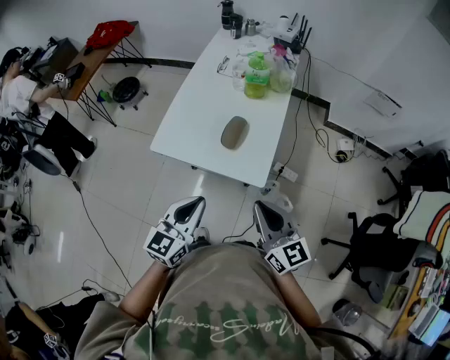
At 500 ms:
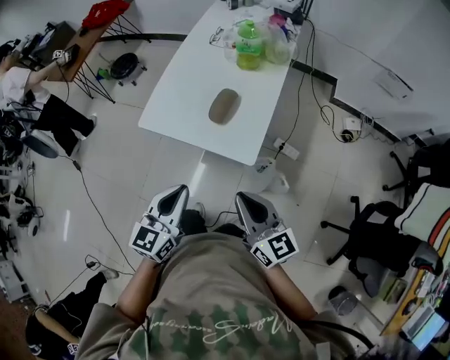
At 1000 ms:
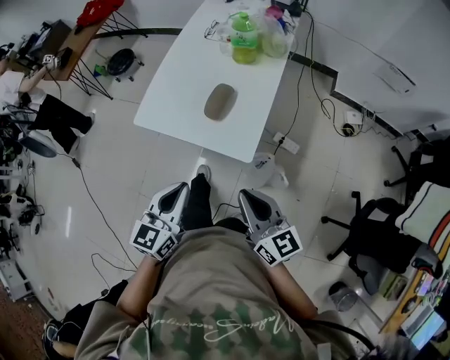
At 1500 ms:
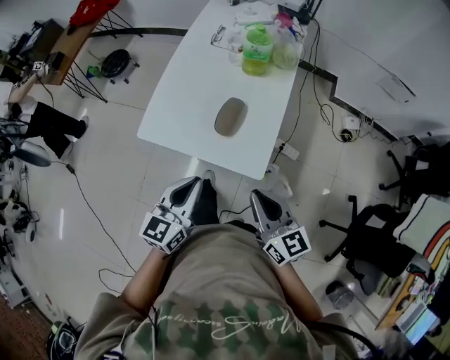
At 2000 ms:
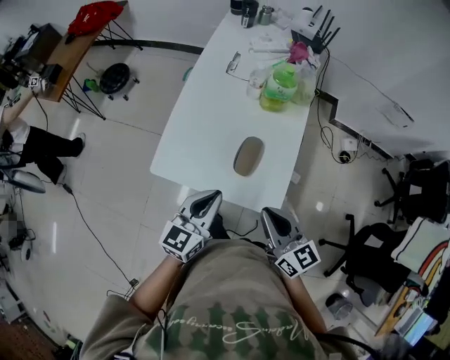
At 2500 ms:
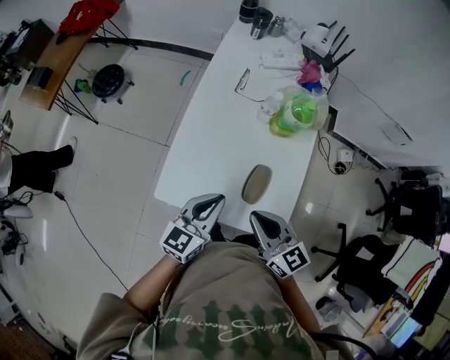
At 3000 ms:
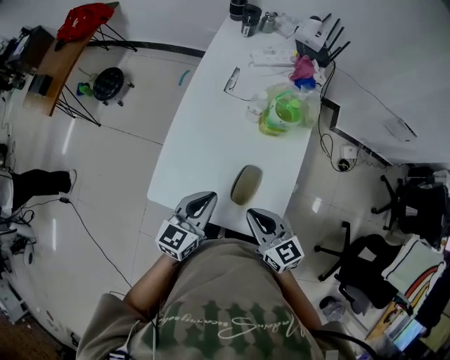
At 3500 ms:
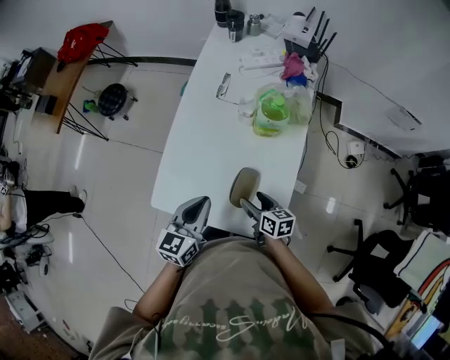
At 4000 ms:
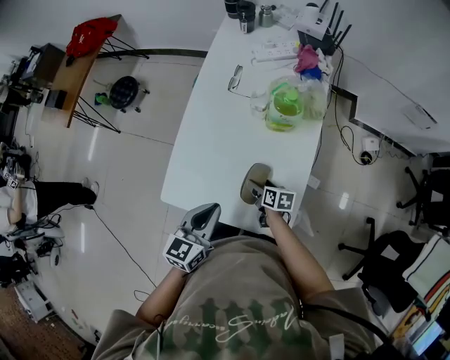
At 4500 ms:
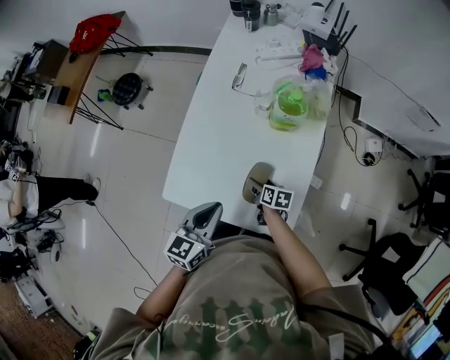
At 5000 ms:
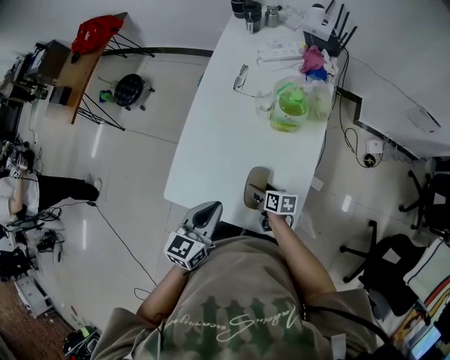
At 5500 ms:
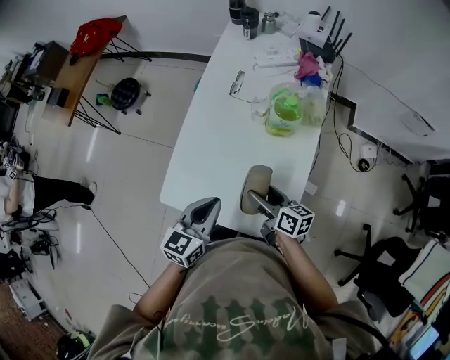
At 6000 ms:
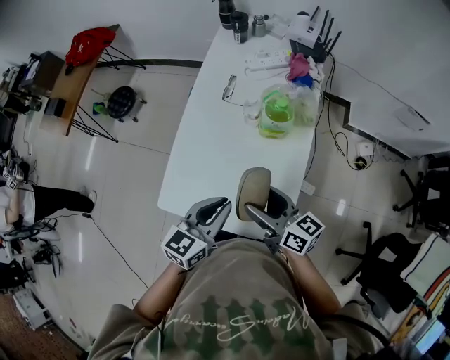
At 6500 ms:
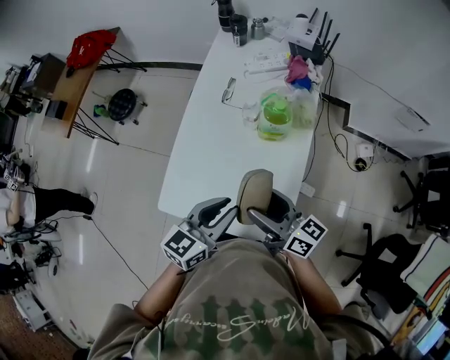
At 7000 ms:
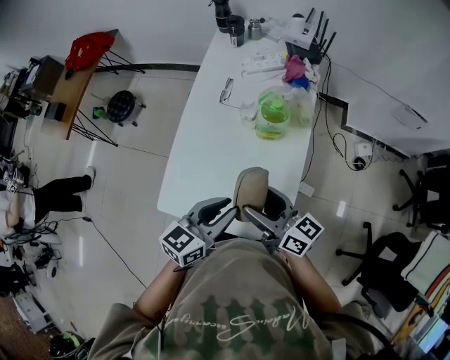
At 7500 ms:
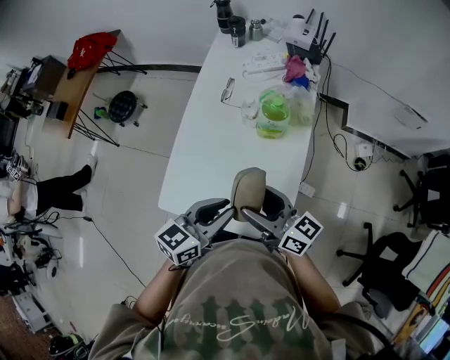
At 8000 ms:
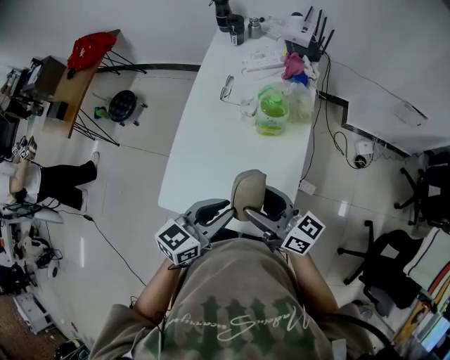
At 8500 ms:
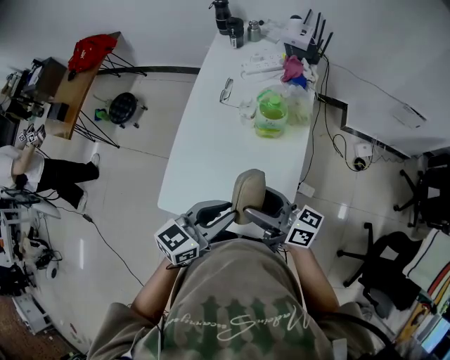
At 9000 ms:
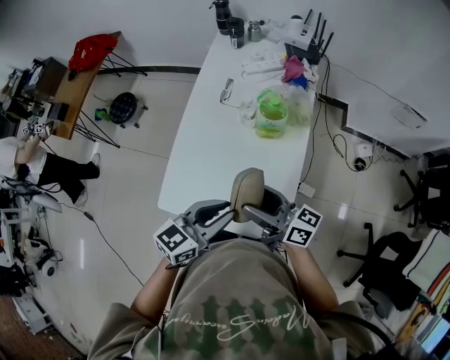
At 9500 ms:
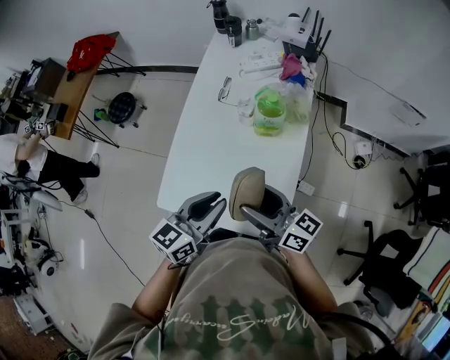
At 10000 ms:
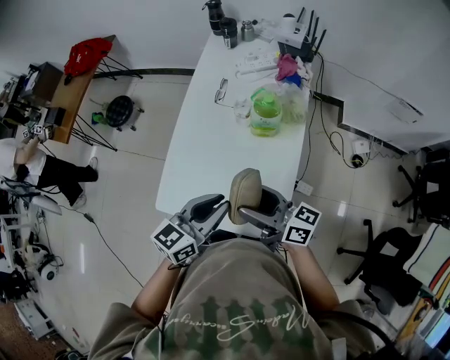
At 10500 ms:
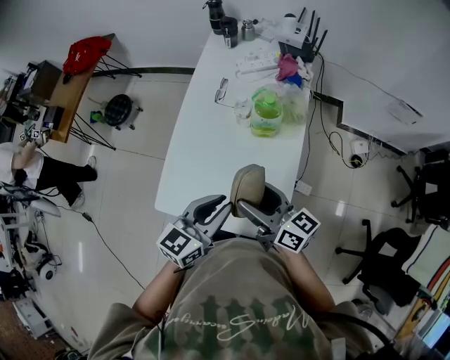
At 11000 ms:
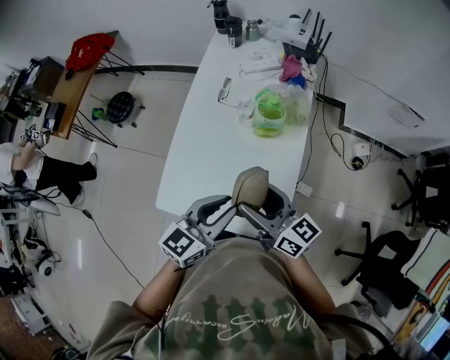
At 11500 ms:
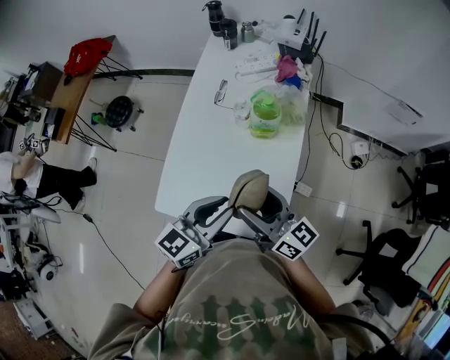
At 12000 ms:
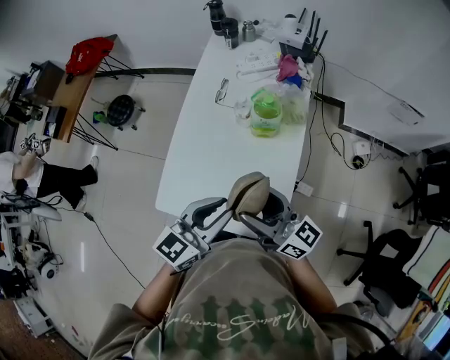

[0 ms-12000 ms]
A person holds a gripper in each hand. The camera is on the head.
0 ms to 2000 ms: The grippers both shift forward by roughly 20 cm.
2000 ms to 4000 ms: The left gripper moves forward, roughly 10 cm. The right gripper is displaced downward and forward by roughly 35 cm, points its fingers about 30 degrees further downward, and opens.
4000 ms to 6000 ms: The left gripper shifts roughly 5 cm to the right and upward, while the right gripper is displaced upward by about 25 cm, and angles its fingers upward, by approximately 40 degrees.
6000 ms to 10000 ms: The grippers move only a little.
10000 ms to 12000 ms: There are only small adjustments of the grippers.

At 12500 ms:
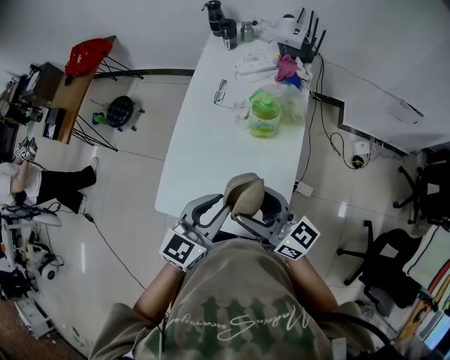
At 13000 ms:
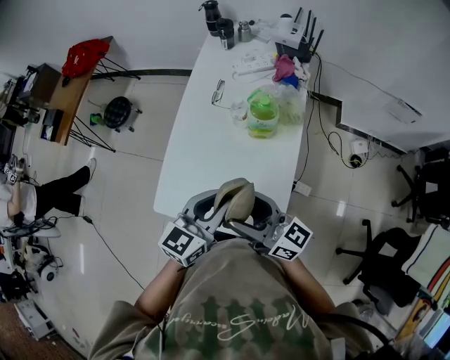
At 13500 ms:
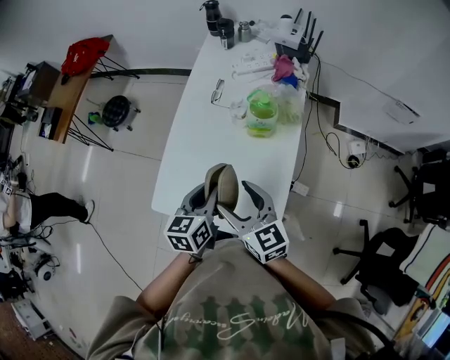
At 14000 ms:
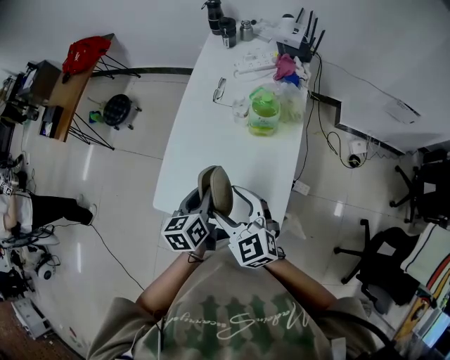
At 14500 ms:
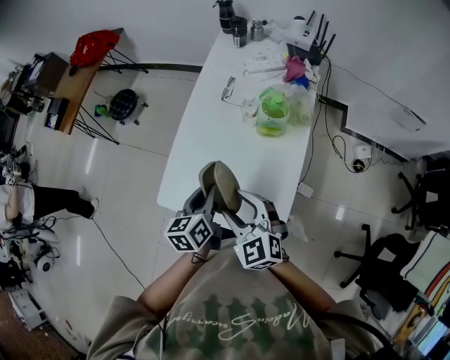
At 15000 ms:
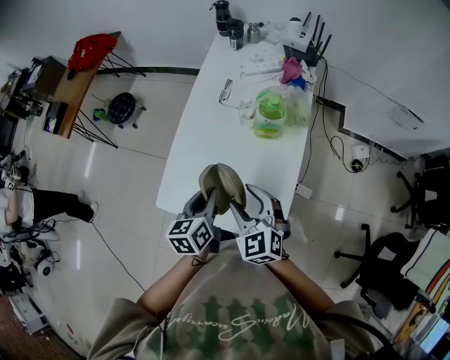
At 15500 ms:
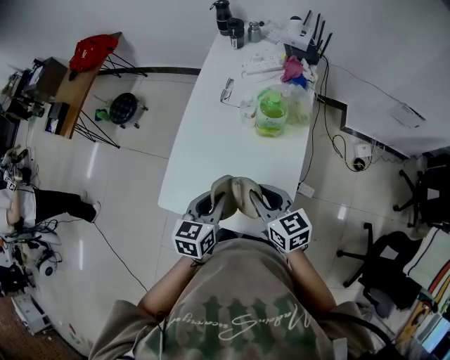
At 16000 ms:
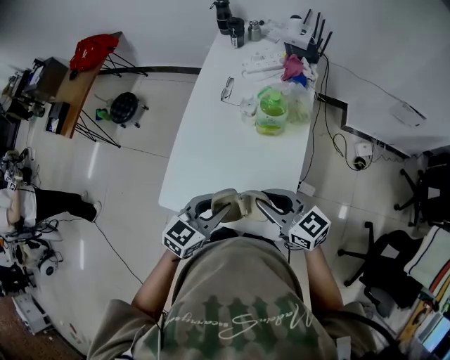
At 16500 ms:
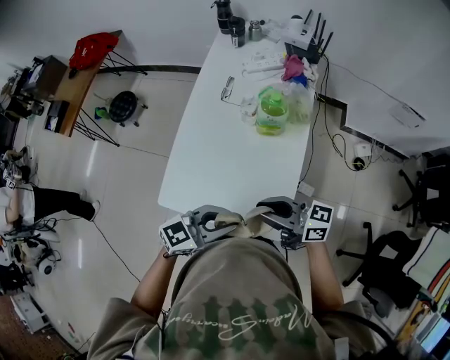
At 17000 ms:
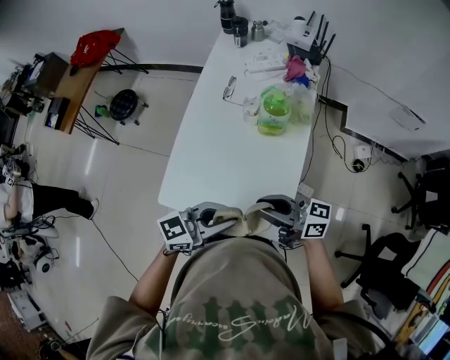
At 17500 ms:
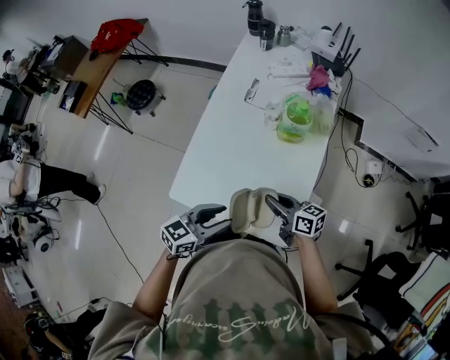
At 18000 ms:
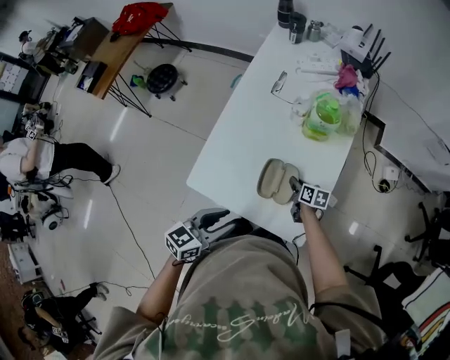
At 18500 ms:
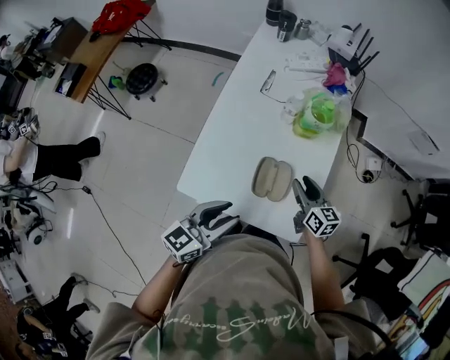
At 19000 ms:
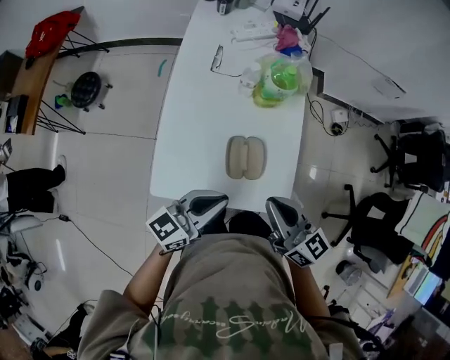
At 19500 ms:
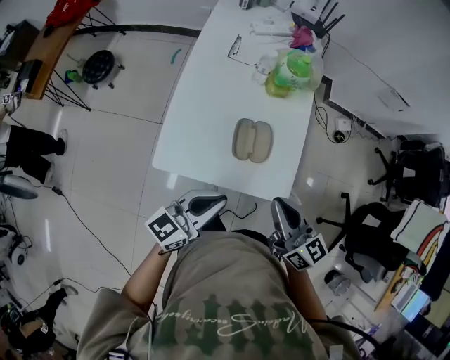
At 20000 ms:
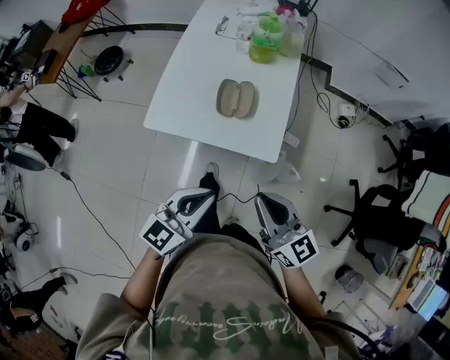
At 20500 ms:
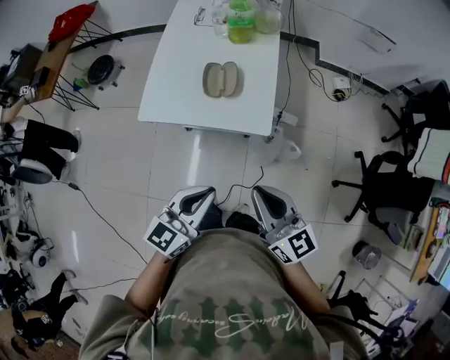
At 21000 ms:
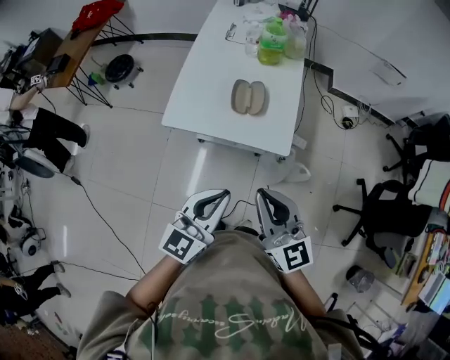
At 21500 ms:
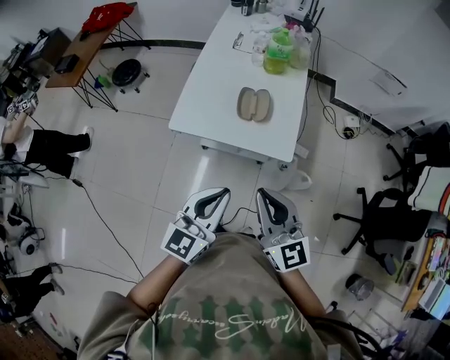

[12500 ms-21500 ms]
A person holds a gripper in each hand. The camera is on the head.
12500 ms to 14500 ms: The right gripper is displaced to the left and downward by approximately 10 cm, and tilts its fingers some 40 degrees downward. Meanwhile the left gripper goes approximately 10 cm downward and to the left, and swivels roughly 40 degrees.
14500 ms to 17000 ms: The right gripper changes place by approximately 10 cm, tilts its fingers roughly 40 degrees upward, and closes its fingers; the left gripper changes place by roughly 15 cm, and swivels some 60 degrees.
17000 ms to 19500 ms: The left gripper goes downward and returns, approximately 10 cm each way, and opens, then closes again. Meanwhile the right gripper reaches some 30 cm downward, then returns, and turns by about 50 degrees.
19500 ms to 21500 ms: Both grippers travel together backward, about 20 cm. The right gripper turns by approximately 20 degrees; the left gripper swivels roughly 30 degrees.

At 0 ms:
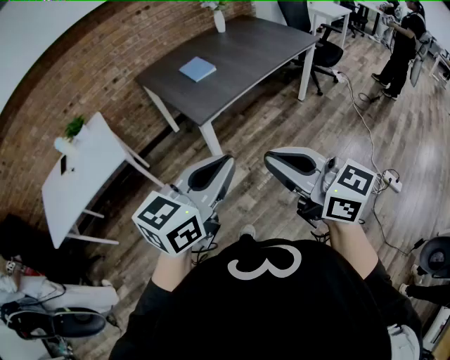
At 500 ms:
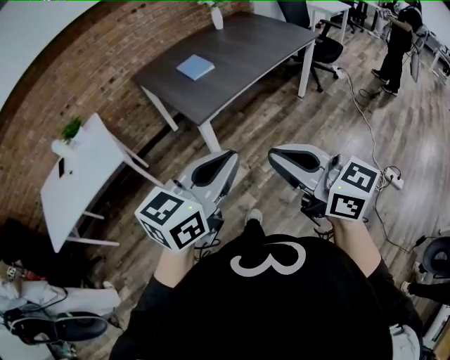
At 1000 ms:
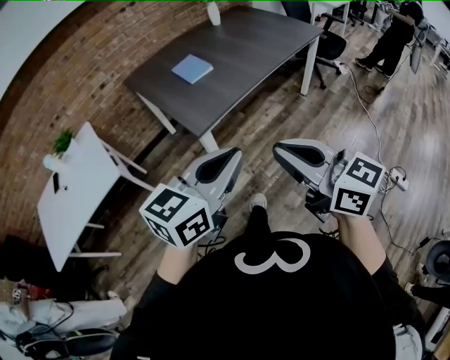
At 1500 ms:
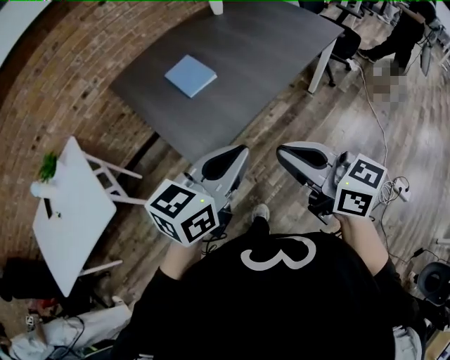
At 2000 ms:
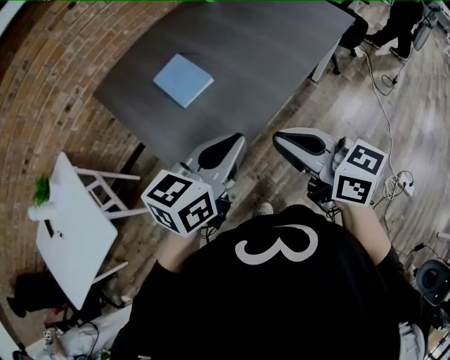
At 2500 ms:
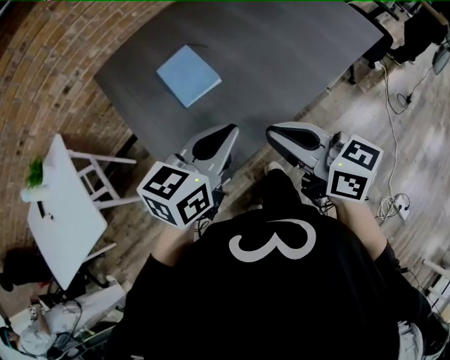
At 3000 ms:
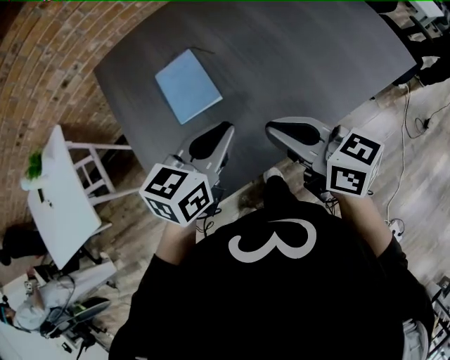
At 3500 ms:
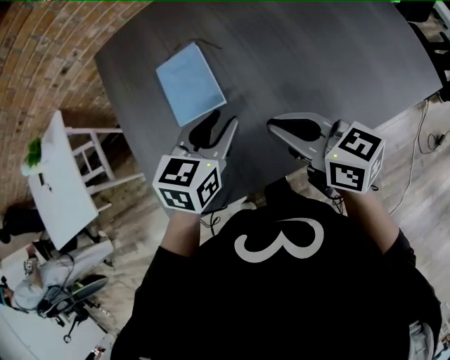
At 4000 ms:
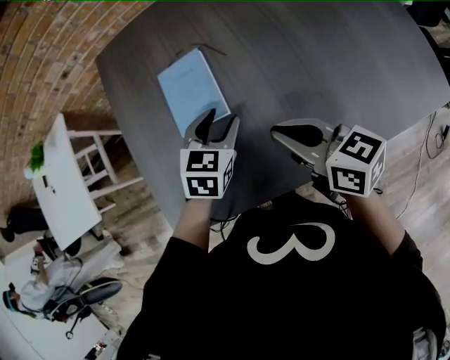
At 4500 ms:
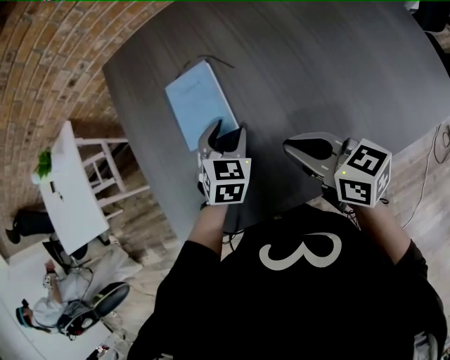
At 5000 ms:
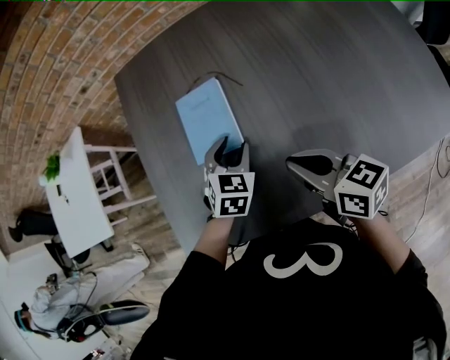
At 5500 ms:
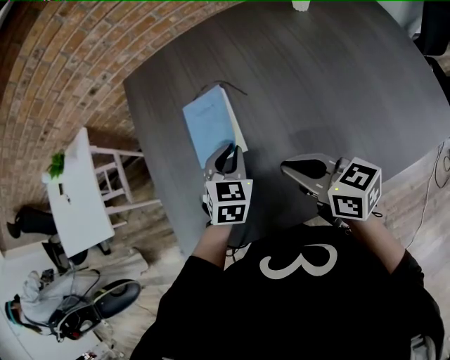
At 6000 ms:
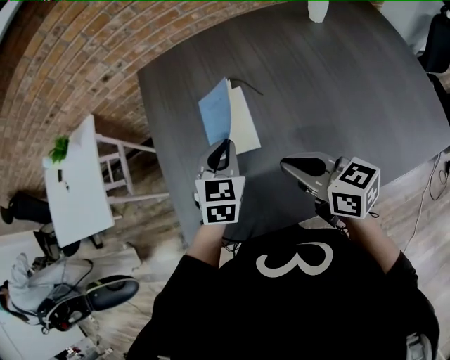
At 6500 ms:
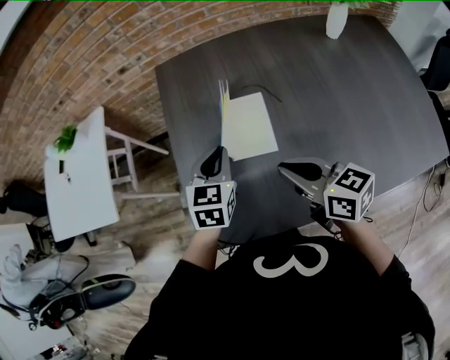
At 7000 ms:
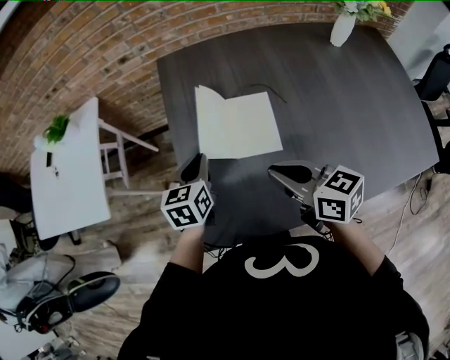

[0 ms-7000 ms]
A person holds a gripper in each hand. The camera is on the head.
0 ms to 2000 ms: The two grippers travel together, forward, roughly 50 cm.
2000 ms to 3500 ms: The right gripper shifts by approximately 25 cm, and turns by approximately 30 degrees. The left gripper moves approximately 30 cm, turns by roughly 40 degrees, and opens.
3500 ms to 5000 ms: The left gripper shifts approximately 10 cm downward and forward, and rotates about 30 degrees, while the right gripper ends up about 5 cm from where it was.
5000 ms to 7000 ms: The right gripper is displaced to the left and upward by some 15 cm. The left gripper moves to the left, about 20 cm, changes its angle by about 40 degrees, and closes.
